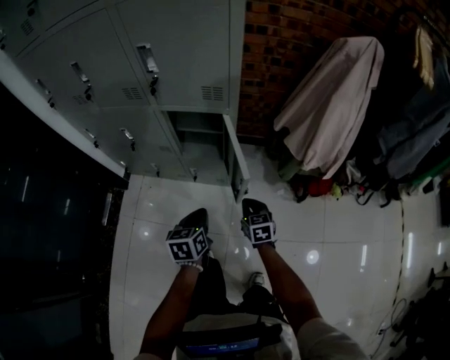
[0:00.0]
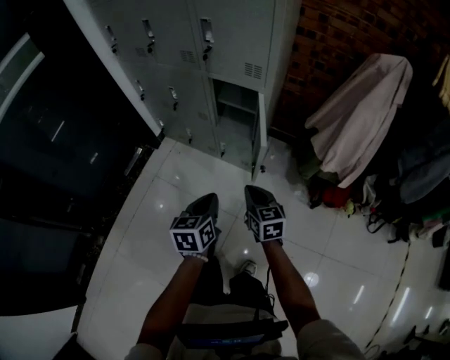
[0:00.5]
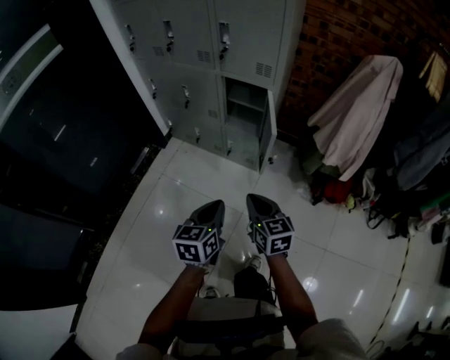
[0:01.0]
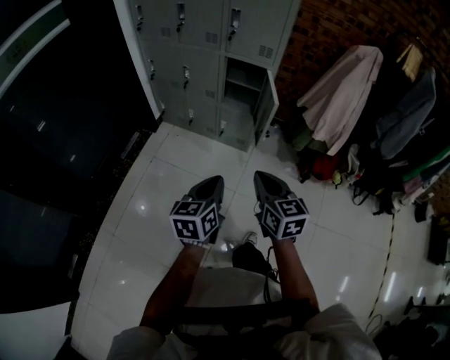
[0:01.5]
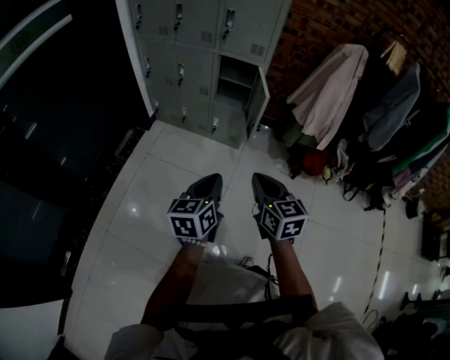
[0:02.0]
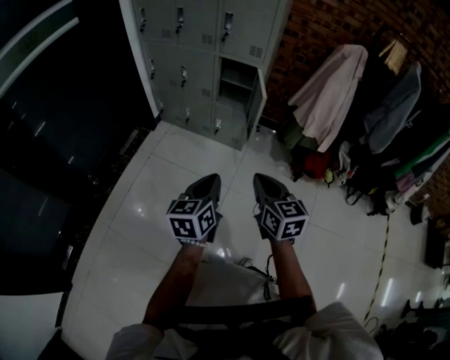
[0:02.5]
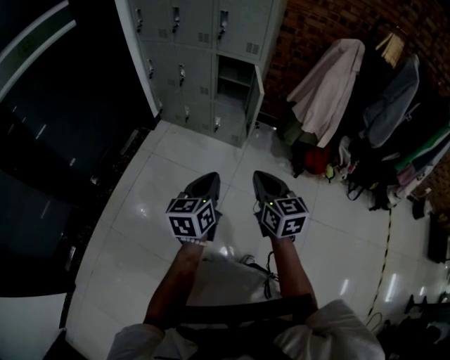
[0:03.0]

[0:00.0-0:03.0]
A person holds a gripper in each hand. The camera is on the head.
0:00.0 to 0:01.5: The left gripper goes about 35 cm backward and upward. The right gripper heads backward, upward and to the left, covering some 50 cm, and swivels approximately 20 degrees.
0:01.5 to 0:03.0: The right gripper goes some 10 cm backward and to the right. Meanwhile the left gripper heads backward, covering about 10 cm.

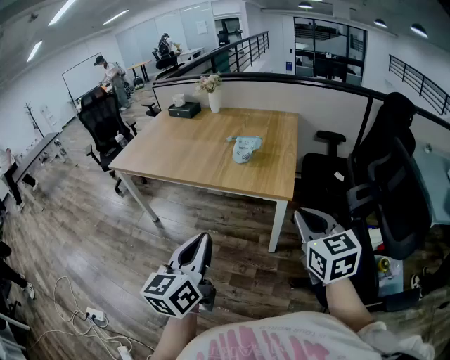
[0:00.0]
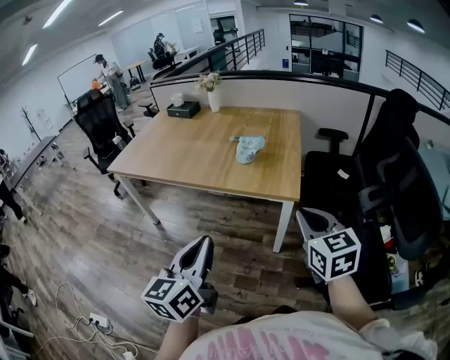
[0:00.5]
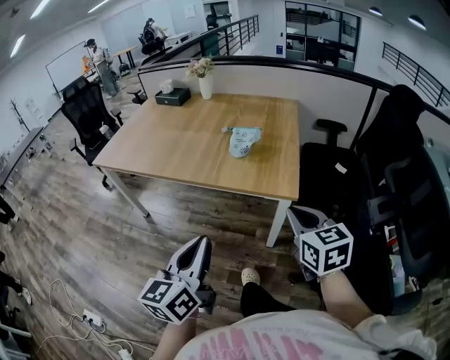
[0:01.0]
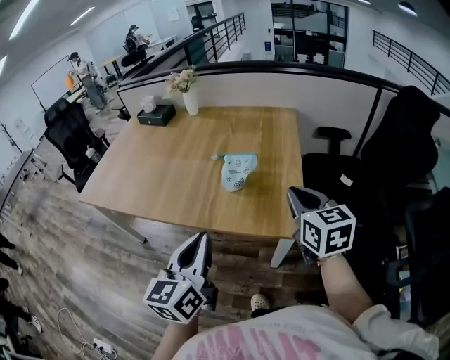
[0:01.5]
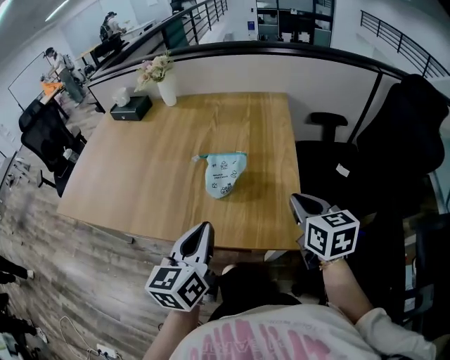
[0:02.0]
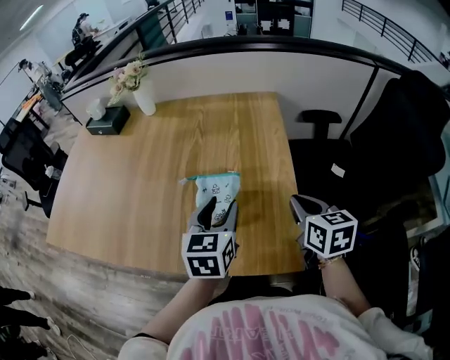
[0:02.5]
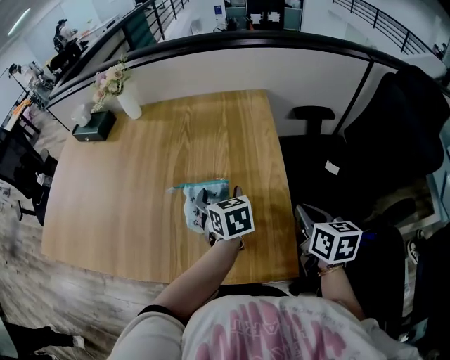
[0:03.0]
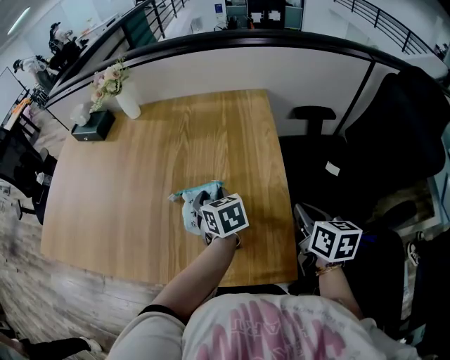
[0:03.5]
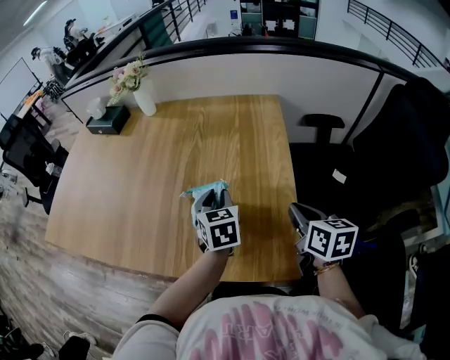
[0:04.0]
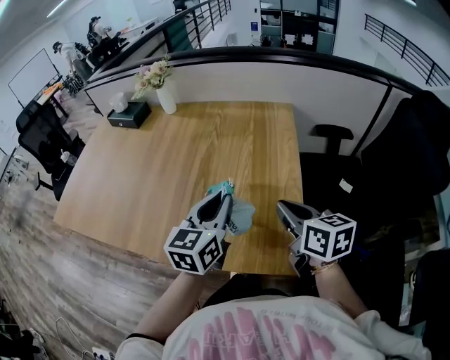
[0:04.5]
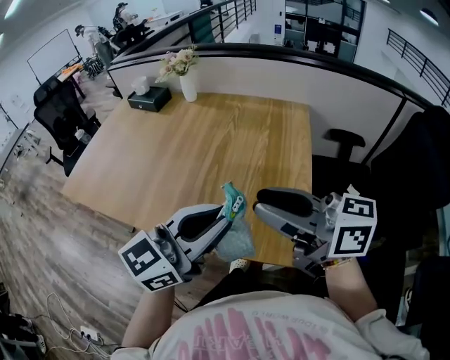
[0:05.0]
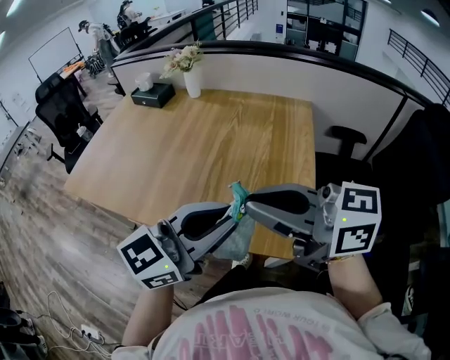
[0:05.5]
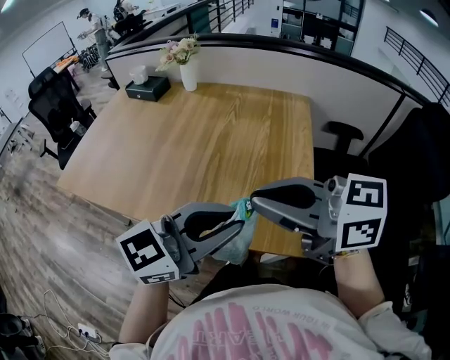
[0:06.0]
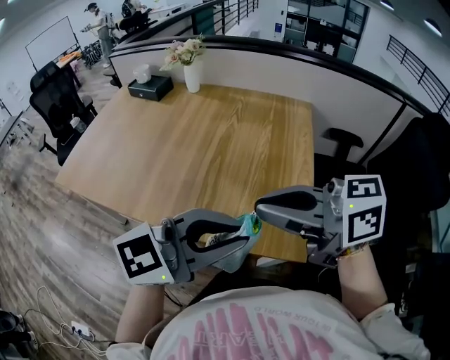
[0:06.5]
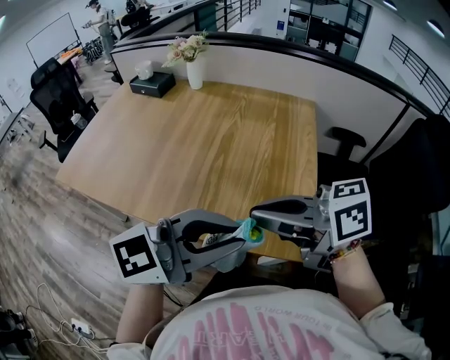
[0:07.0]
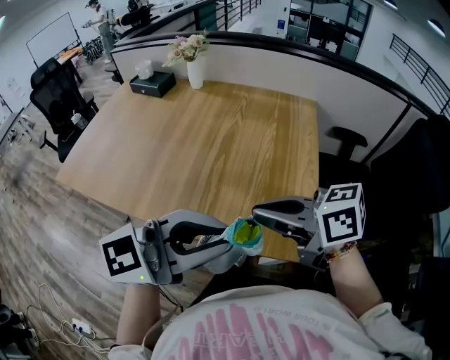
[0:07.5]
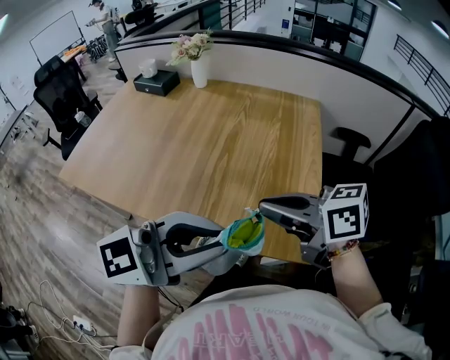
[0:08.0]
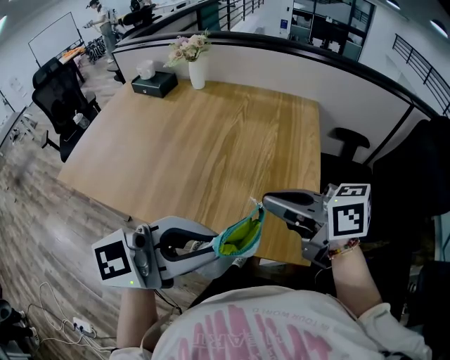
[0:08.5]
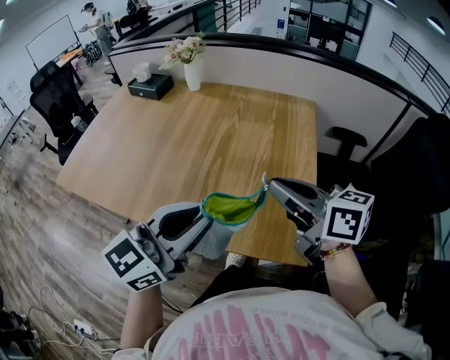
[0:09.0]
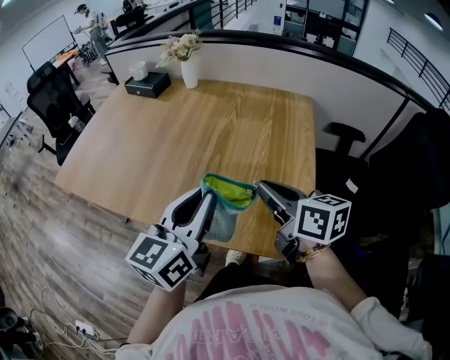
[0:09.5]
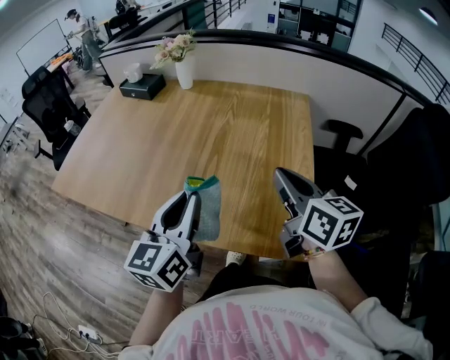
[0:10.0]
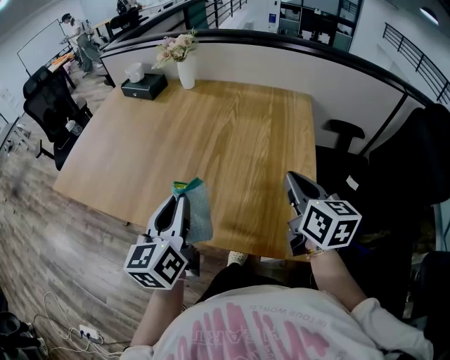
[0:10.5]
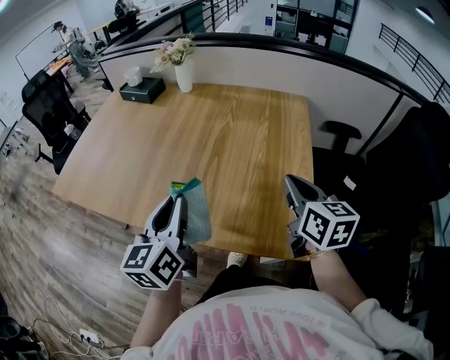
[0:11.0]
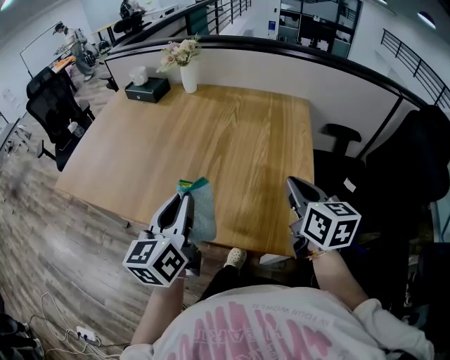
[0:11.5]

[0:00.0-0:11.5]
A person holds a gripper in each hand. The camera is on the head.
0:00.0 to 0:02.0: Both grippers travel together forward, approximately 40 cm.
0:02.0 to 0:04.0: The right gripper moves forward, about 10 cm, while the left gripper goes about 25 cm forward and downward, turns by roughly 30 degrees, and opens, then closes once more.
0:04.0 to 0:06.0: The right gripper ends up about 30 cm from where it was, rotates about 60 degrees, and opens, then closes once more. The left gripper shifts by some 30 cm, and angles its fingers upward, by roughly 30 degrees.
0:06.0 to 0:07.5: The right gripper moves downward, about 10 cm, and turns by roughly 20 degrees.
0:07.5 to 0:09.5: The right gripper ends up roughly 10 cm from where it was, and changes its angle by roughly 30 degrees. Meanwhile the left gripper changes place by roughly 15 cm, and turns by some 50 degrees.
0:09.5 to 0:11.5: The left gripper goes roughly 5 cm to the left. Meanwhile the right gripper is displaced to the right by roughly 5 cm, and turns by approximately 20 degrees.

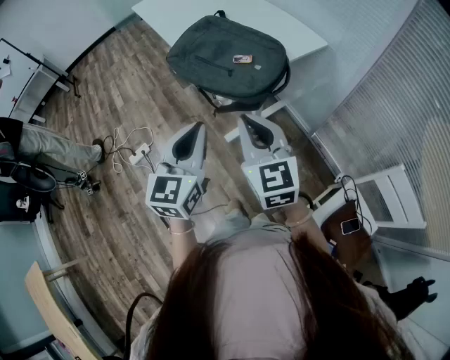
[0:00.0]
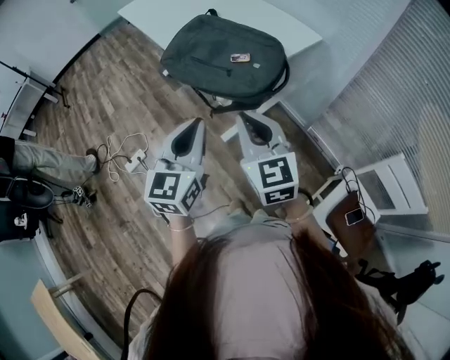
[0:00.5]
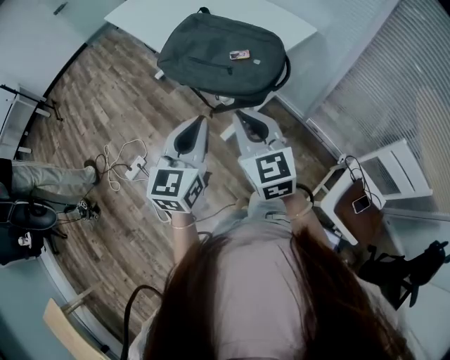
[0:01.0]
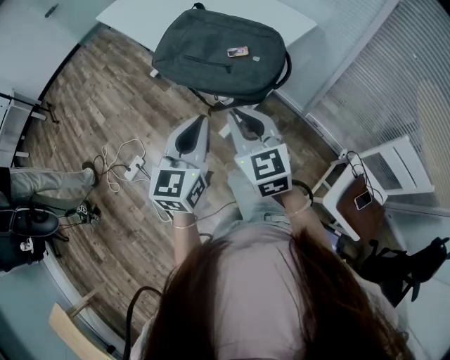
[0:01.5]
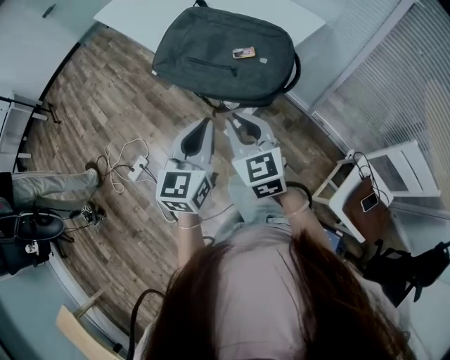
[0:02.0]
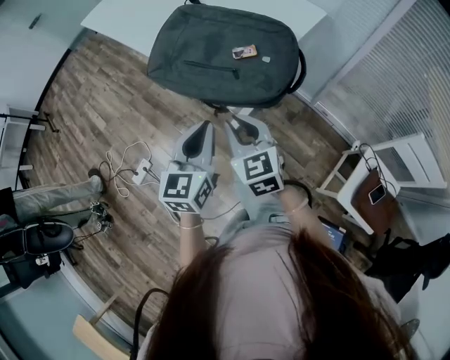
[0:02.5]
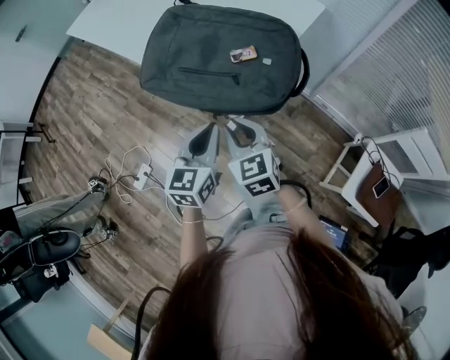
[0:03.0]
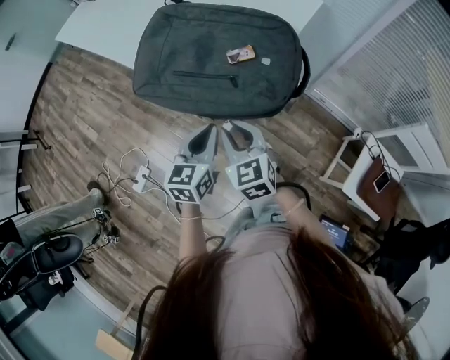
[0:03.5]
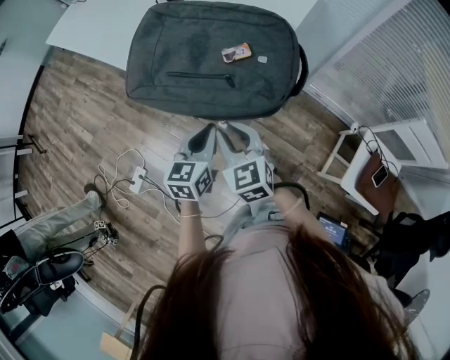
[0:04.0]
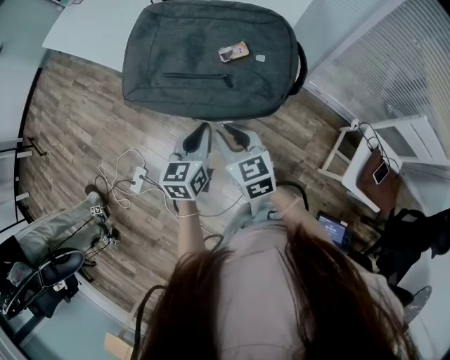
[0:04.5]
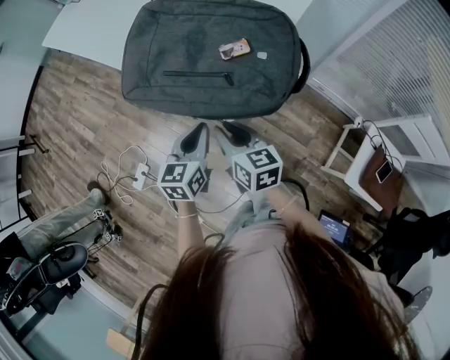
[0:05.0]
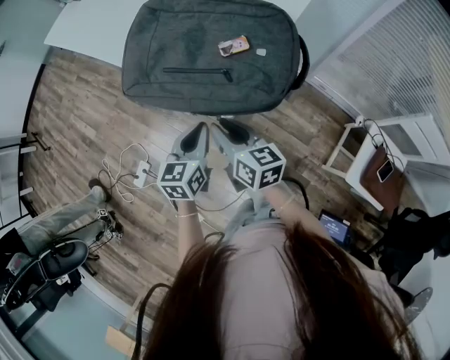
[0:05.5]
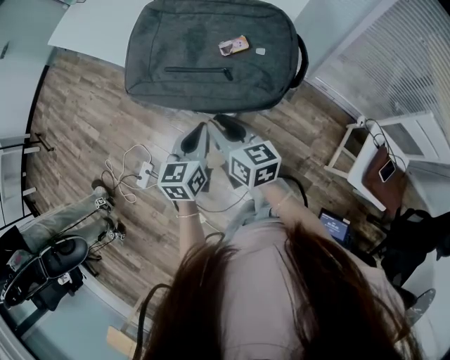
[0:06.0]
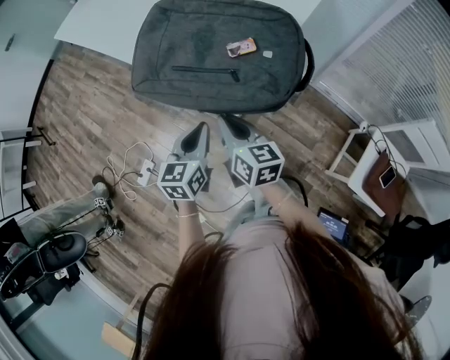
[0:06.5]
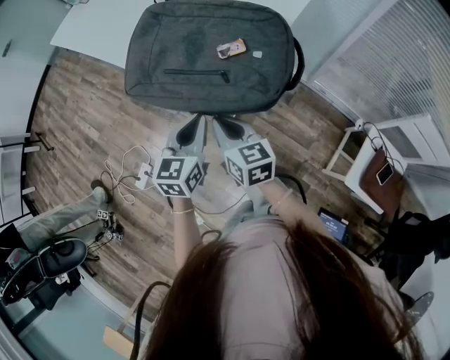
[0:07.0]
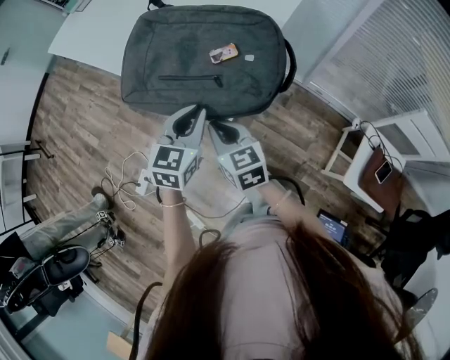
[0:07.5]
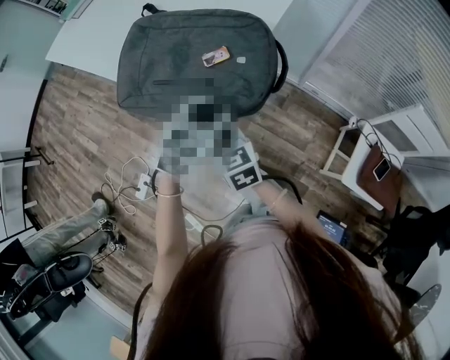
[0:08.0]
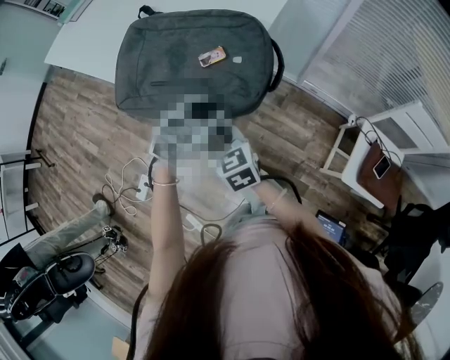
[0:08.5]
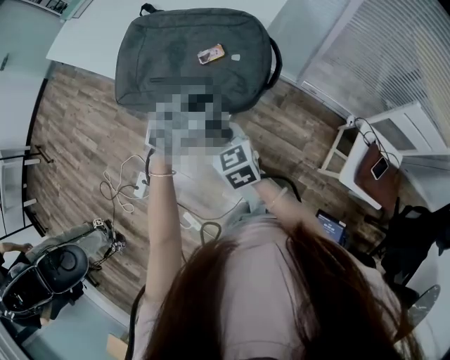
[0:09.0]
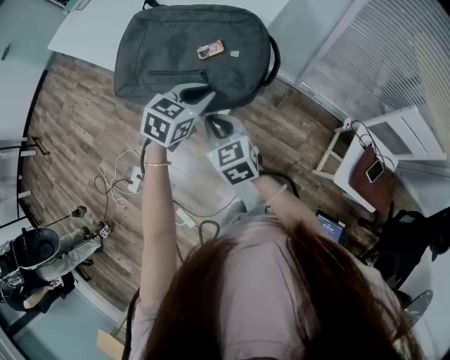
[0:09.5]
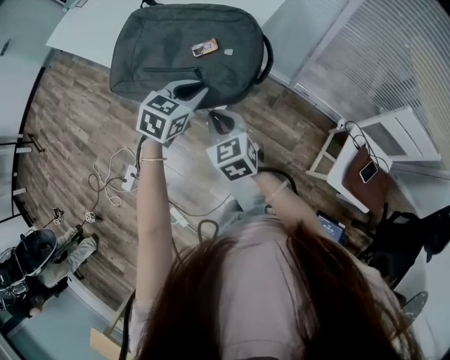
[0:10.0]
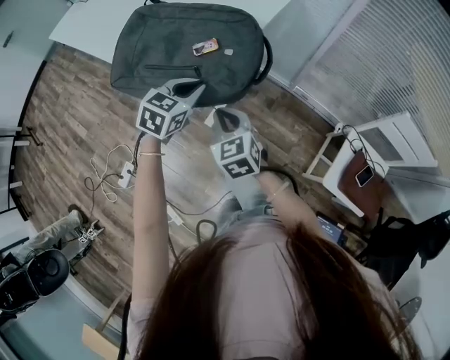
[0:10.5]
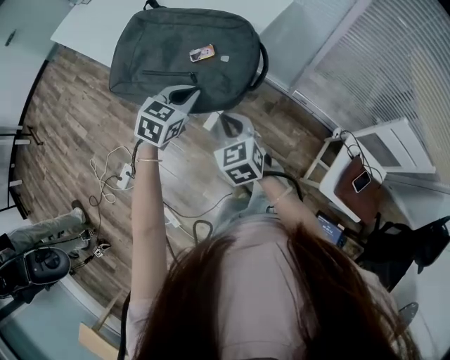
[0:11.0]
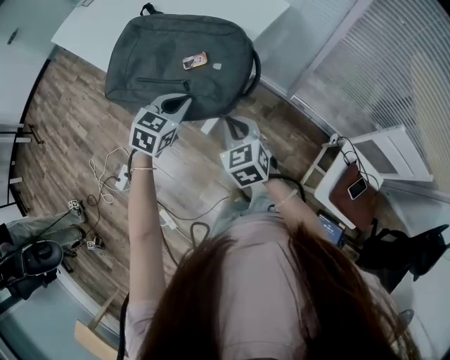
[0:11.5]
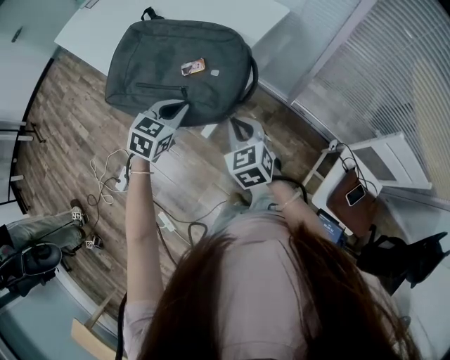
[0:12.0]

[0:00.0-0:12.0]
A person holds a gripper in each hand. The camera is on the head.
0:00.0 to 0:02.0: The left gripper moves forward, downward and to the left, some 15 cm. The right gripper travels to the left, forward and downward by approximately 15 cm.
0:02.0 to 0:04.0: The two grippers go roughly 15 cm downward and forward. The left gripper changes its angle by roughly 20 degrees.
0:04.0 to 0:06.0: The right gripper swivels approximately 40 degrees.
0:06.0 to 0:08.0: The right gripper changes its angle by about 20 degrees, and closes its fingers. The left gripper moves to the right and upward, roughly 15 cm, rotates about 40 degrees, and opens its fingers.
0:08.0 to 0:10.0: The right gripper shifts approximately 5 cm to the right.
0:10.0 to 0:12.0: The right gripper shifts about 10 cm to the right.
